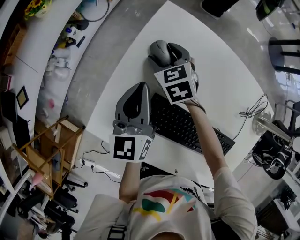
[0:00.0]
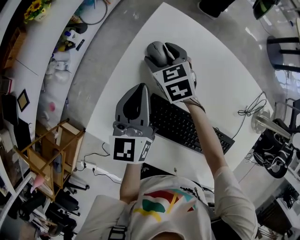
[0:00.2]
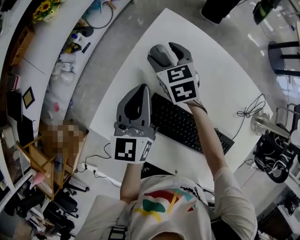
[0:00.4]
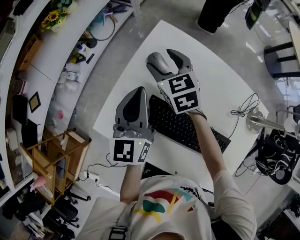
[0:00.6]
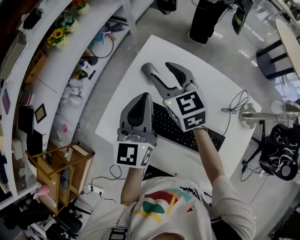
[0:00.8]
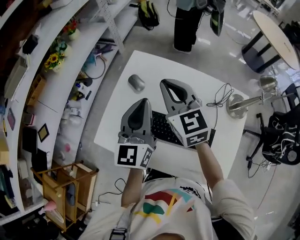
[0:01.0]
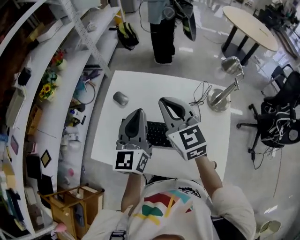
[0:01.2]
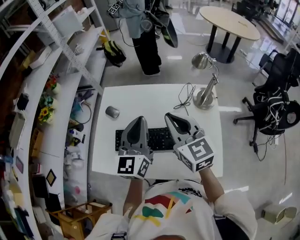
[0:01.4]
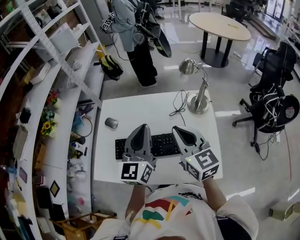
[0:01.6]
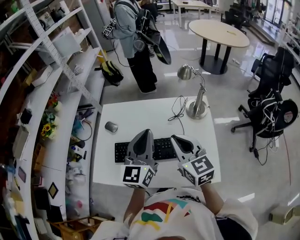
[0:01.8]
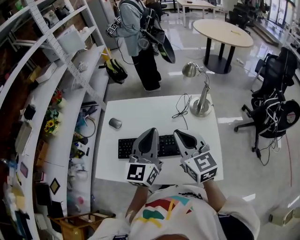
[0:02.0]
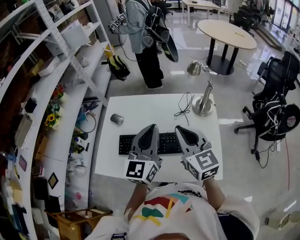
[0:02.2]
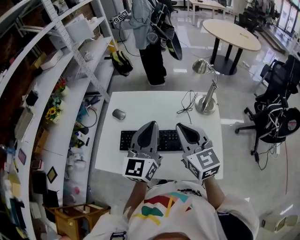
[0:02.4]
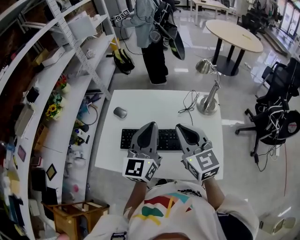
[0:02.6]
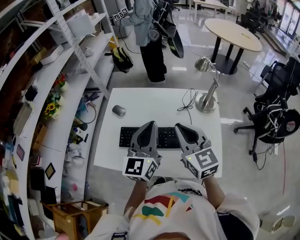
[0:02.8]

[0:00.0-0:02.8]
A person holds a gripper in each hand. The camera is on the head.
0.0 to 1.4 s: The right gripper moves approximately 60 cm, tilts its fingers approximately 40 degrees upward, and closes its fingers; the left gripper moves roughly 40 cm, and swivels about 30 degrees.
1.4 to 2.8 s: The grippers both shift backward by approximately 5 cm. The left gripper reaches some 10 cm to the right, then returns.

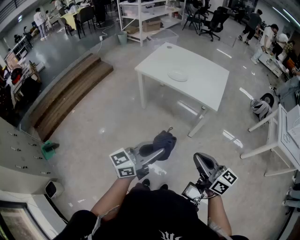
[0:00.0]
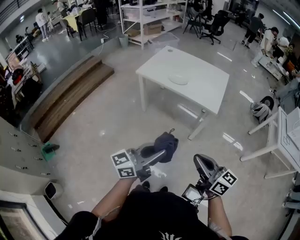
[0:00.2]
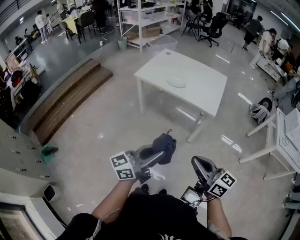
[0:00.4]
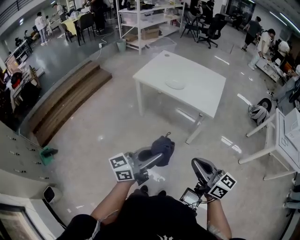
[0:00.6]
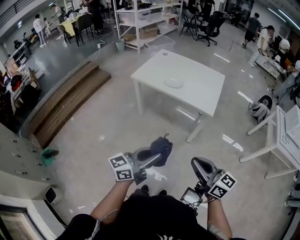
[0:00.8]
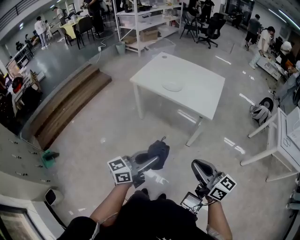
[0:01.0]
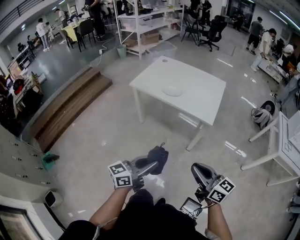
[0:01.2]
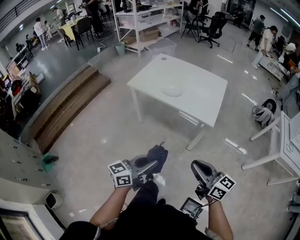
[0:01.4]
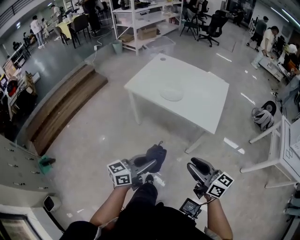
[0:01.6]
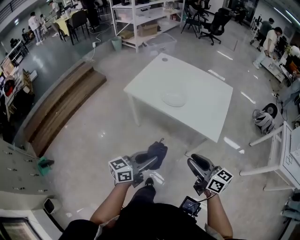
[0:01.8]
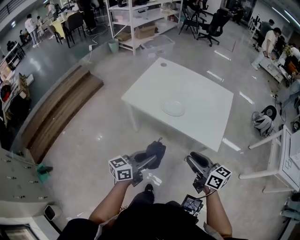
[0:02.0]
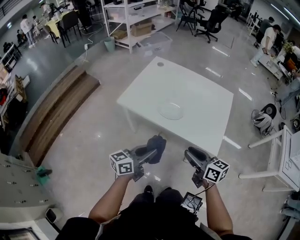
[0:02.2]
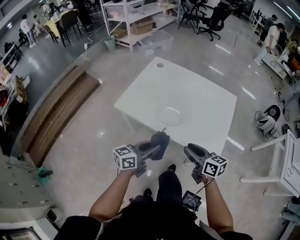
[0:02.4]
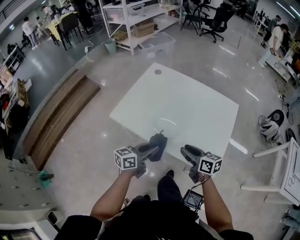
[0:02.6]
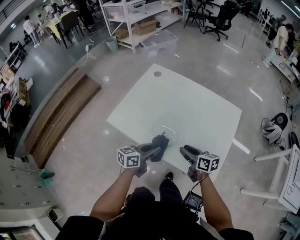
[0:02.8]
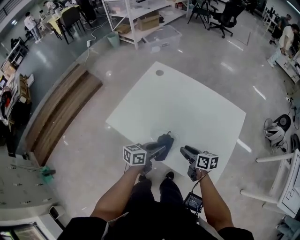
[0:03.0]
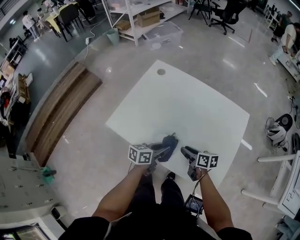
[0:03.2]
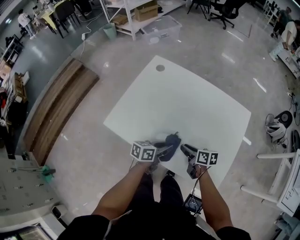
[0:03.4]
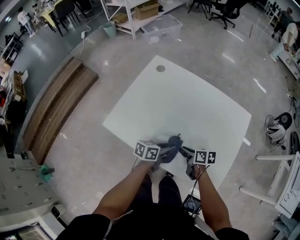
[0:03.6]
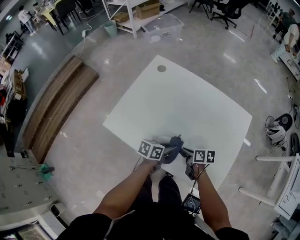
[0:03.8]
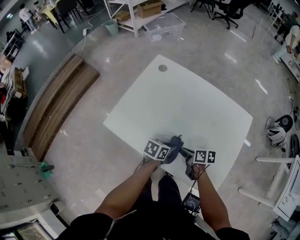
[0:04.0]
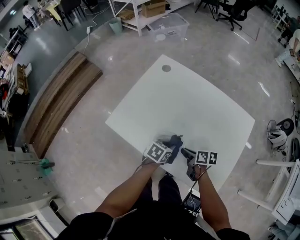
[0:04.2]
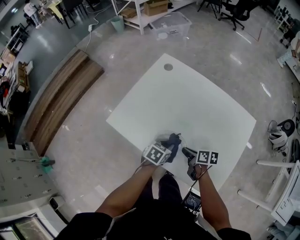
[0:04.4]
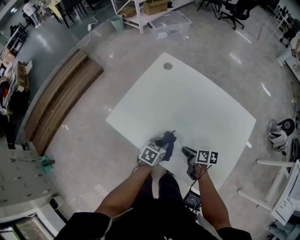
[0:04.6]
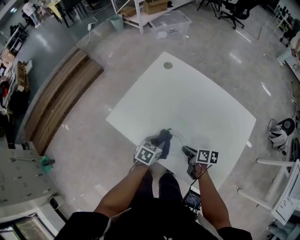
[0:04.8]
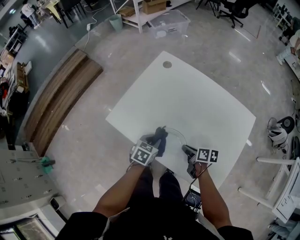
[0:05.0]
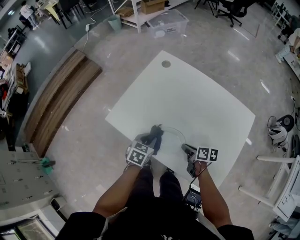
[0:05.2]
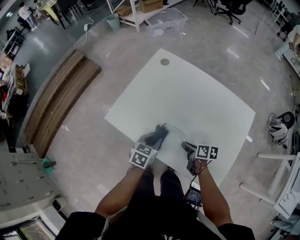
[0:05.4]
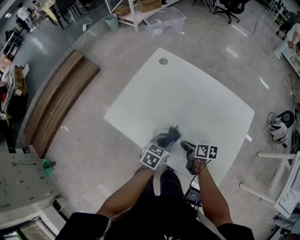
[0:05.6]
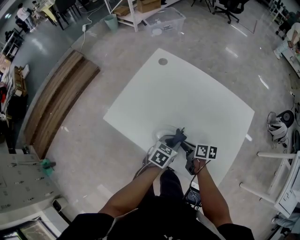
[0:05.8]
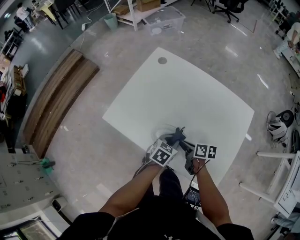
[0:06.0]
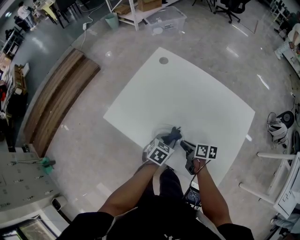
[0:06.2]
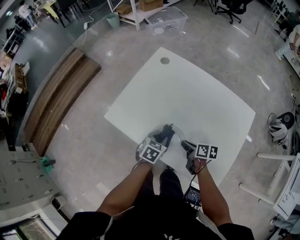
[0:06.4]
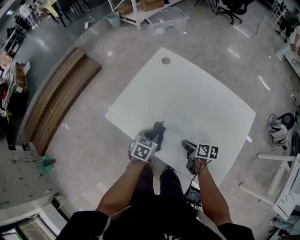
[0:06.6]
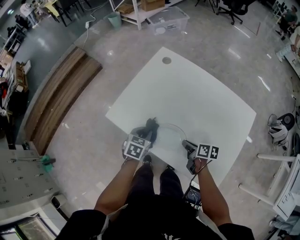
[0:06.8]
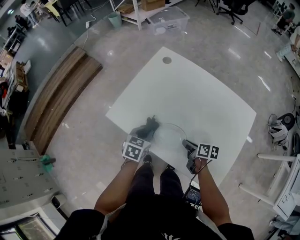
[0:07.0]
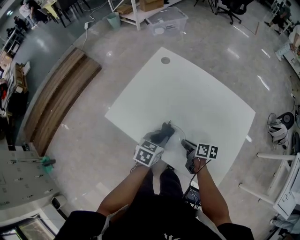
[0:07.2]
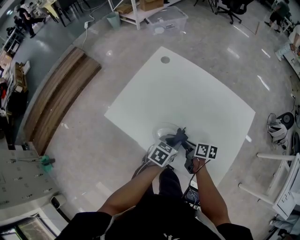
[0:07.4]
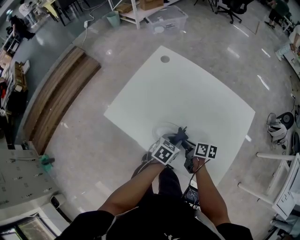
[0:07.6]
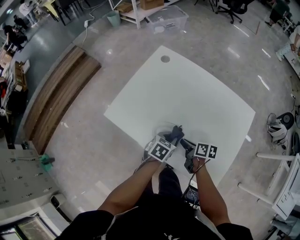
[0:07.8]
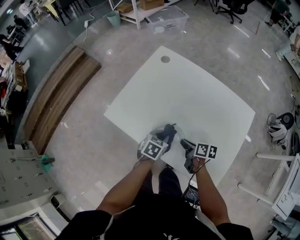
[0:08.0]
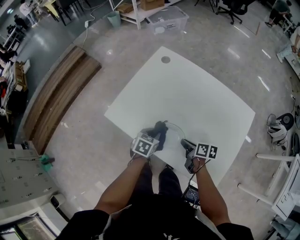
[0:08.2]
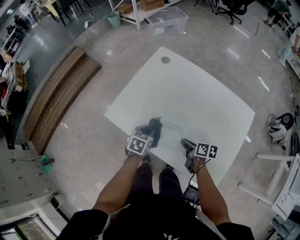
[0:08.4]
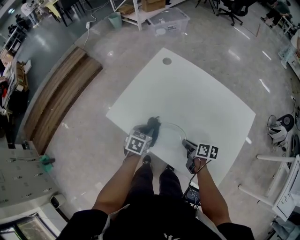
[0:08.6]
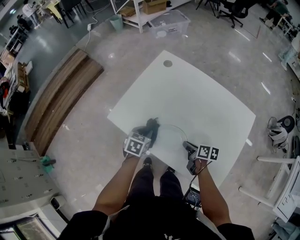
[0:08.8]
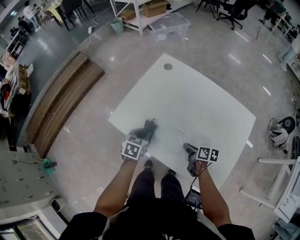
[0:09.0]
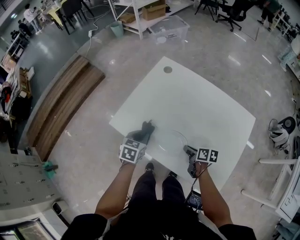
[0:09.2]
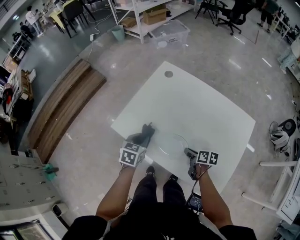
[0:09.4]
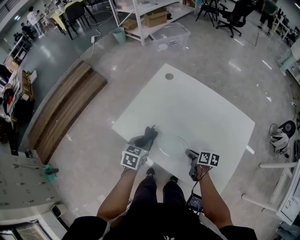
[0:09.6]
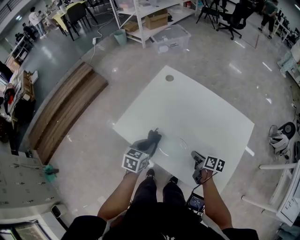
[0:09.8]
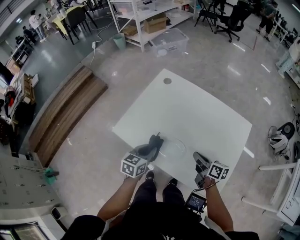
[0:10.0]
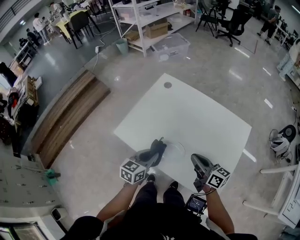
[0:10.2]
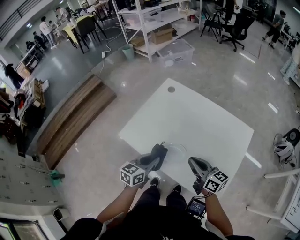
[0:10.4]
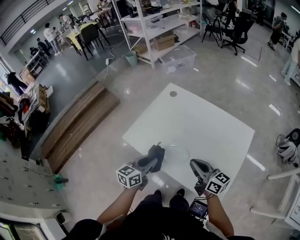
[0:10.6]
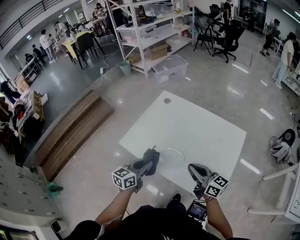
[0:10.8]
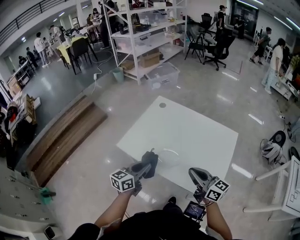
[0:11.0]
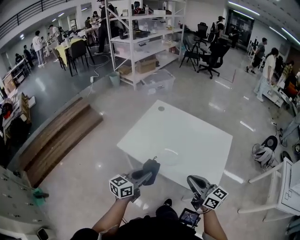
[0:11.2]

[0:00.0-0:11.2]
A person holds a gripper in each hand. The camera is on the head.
0.0 to 1.6 s: The left gripper shifts some 20 cm forward and downward, while the right gripper heads forward, covering roughly 20 cm, and opens up.
1.6 to 3.2 s: Both grippers are carried forward, some 60 cm. The right gripper is displaced downward by about 25 cm, and rotates about 40 degrees. The left gripper turns by about 30 degrees.
3.2 to 4.8 s: The left gripper shifts approximately 10 cm downward and to the left, and changes its angle by roughly 40 degrees, while the right gripper closes up.
4.8 to 6.4 s: The left gripper goes left and right, about 15 cm each way, reversing 2 times.
6.4 to 8.0 s: The left gripper goes left and right, some 15 cm each way, reversing 2 times.
8.0 to 9.6 s: The left gripper heads to the left and upward, covering about 15 cm.
9.6 to 11.2 s: The left gripper moves backward and upward, roughly 30 cm, and points its fingers roughly 30 degrees further upward. The right gripper shifts about 40 cm upward and backward, and points its fingers about 40 degrees further upward.

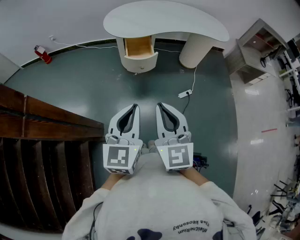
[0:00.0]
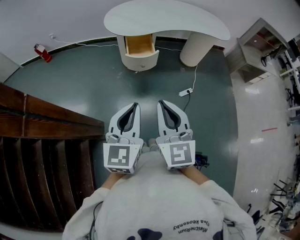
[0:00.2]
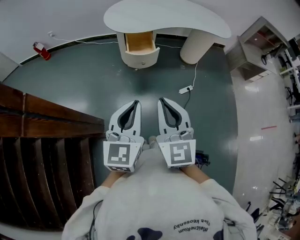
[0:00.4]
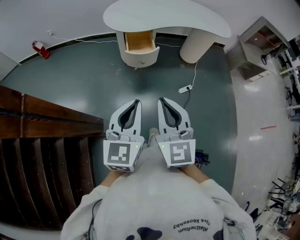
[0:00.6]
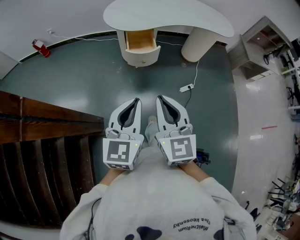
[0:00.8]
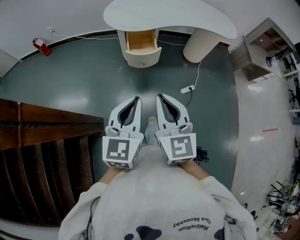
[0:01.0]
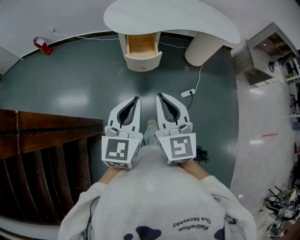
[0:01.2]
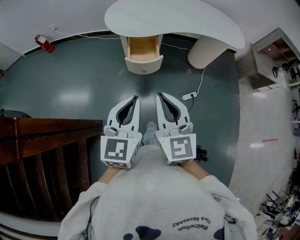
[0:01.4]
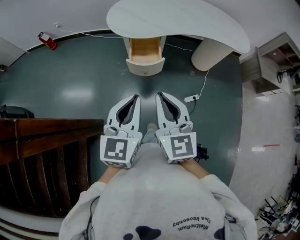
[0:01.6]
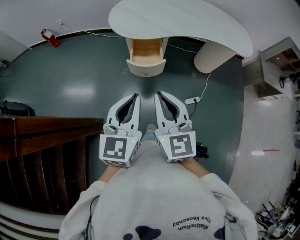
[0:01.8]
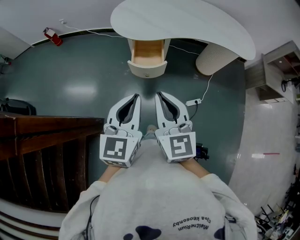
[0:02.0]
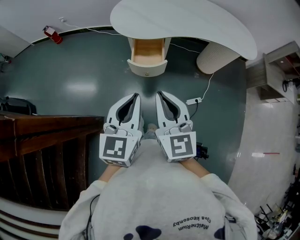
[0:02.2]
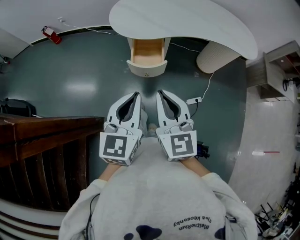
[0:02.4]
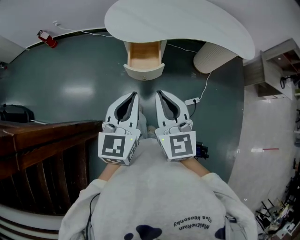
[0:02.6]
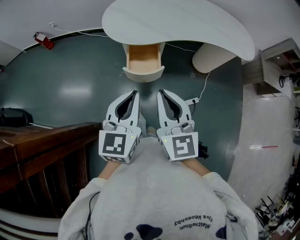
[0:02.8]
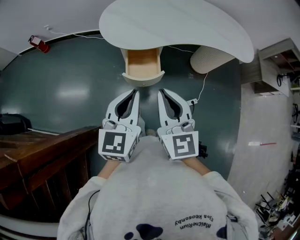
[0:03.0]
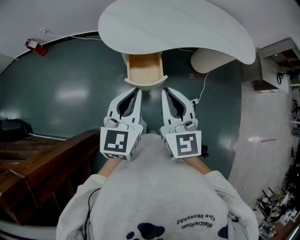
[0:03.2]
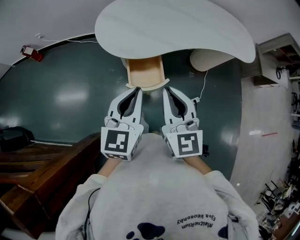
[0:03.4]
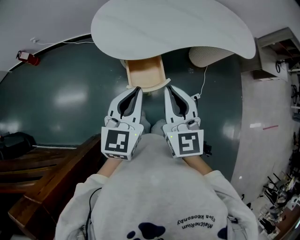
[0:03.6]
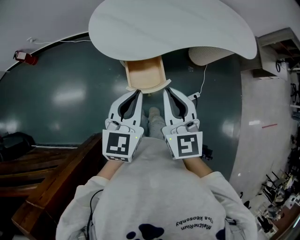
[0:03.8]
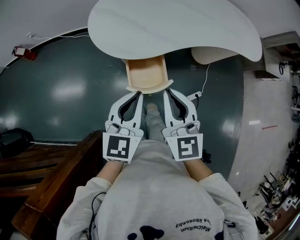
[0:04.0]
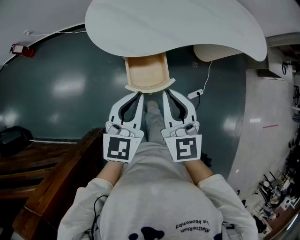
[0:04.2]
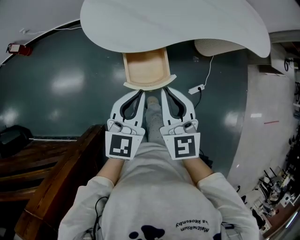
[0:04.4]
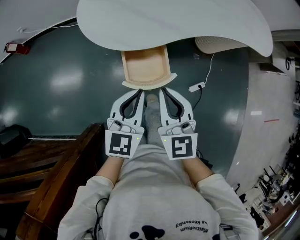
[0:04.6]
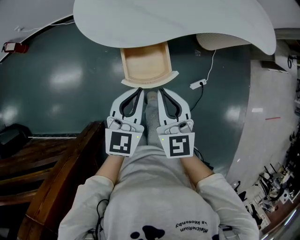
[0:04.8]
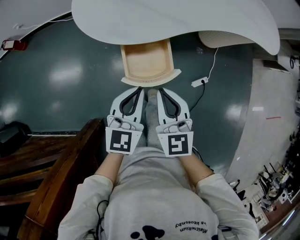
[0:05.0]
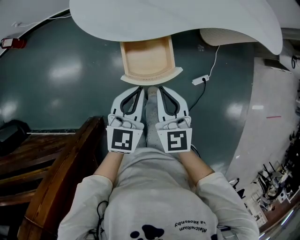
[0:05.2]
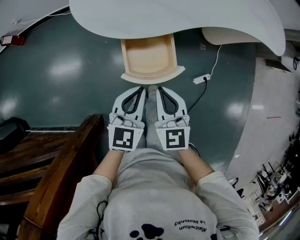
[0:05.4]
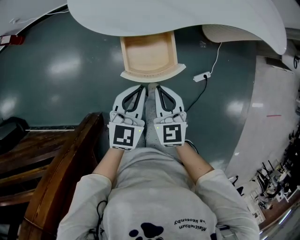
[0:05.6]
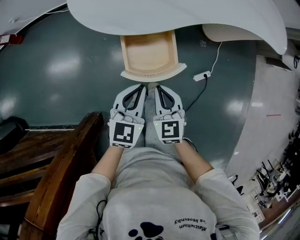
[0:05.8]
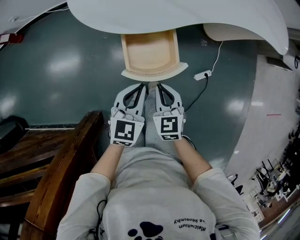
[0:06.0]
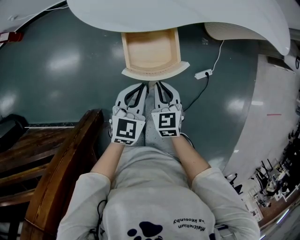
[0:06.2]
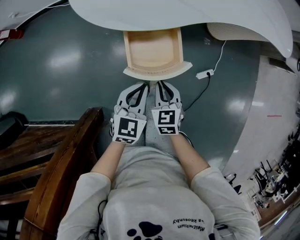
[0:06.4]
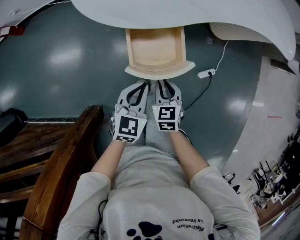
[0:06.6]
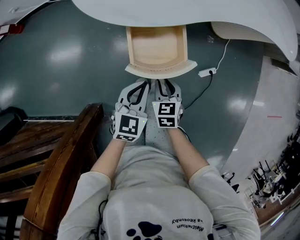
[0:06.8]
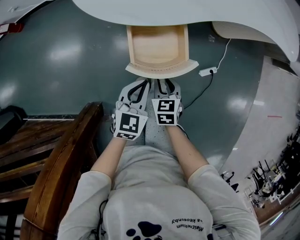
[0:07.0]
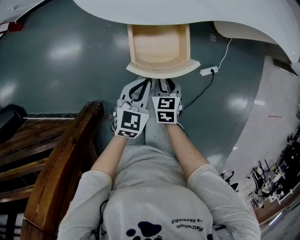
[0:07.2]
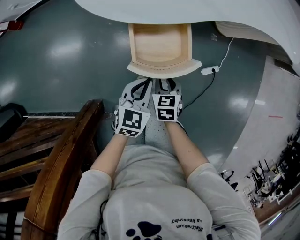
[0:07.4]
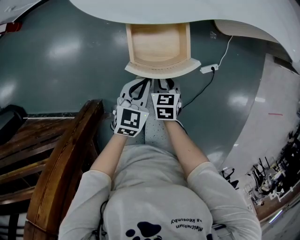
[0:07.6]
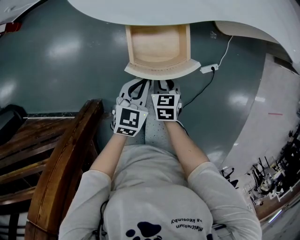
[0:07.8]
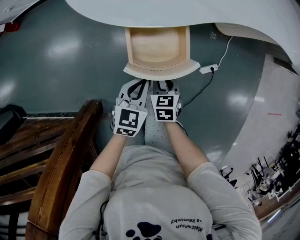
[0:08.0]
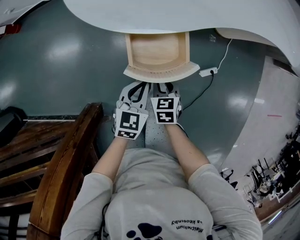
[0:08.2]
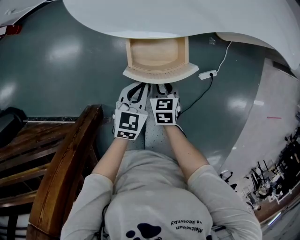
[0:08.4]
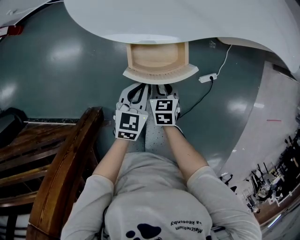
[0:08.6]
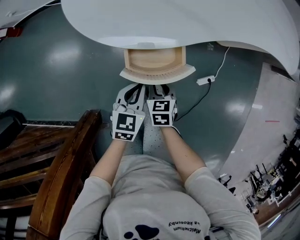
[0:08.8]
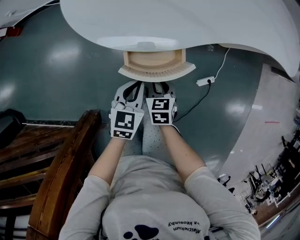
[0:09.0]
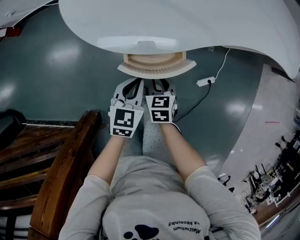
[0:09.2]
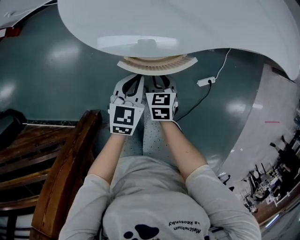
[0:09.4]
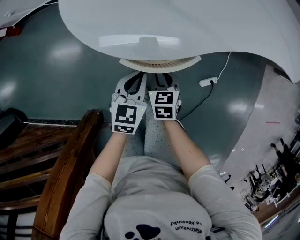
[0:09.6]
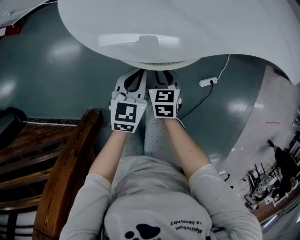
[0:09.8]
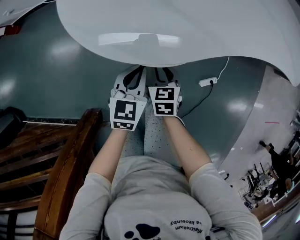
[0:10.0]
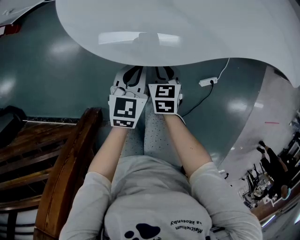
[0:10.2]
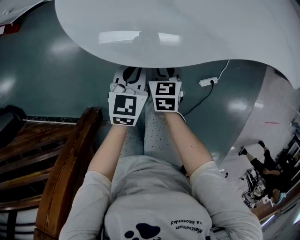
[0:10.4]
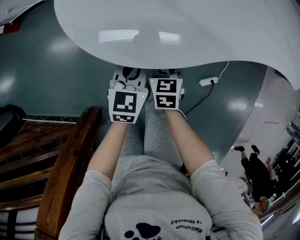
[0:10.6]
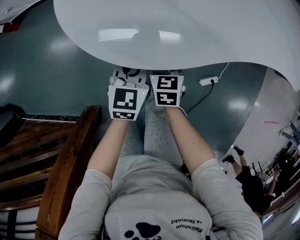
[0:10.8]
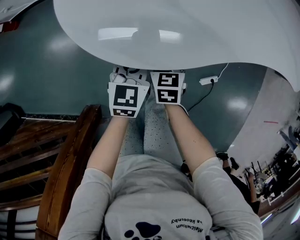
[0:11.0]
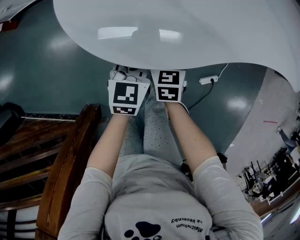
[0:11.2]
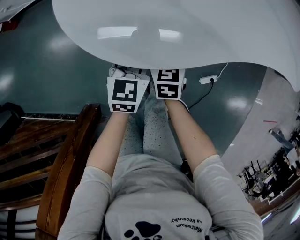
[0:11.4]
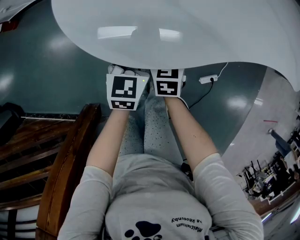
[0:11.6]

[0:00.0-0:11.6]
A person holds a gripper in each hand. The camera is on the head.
0.0 to 1.4 s: Both grippers move forward, approximately 15 cm.
1.4 to 2.8 s: Both grippers travel together forward, about 10 cm.
2.8 to 4.4 s: Both grippers travel together forward and downward, roughly 20 cm.
4.4 to 5.8 s: The grippers both shift downward by about 20 cm.
5.8 to 7.2 s: The right gripper shifts about 15 cm downward, turns by roughly 20 degrees, and opens; the left gripper goes about 10 cm downward.
7.2 to 8.8 s: Both grippers travel together forward, roughly 5 cm.
8.8 to 10.2 s: Both grippers travel together forward, approximately 10 cm.
10.2 to 11.6 s: The two grippers go roughly 5 cm forward.
